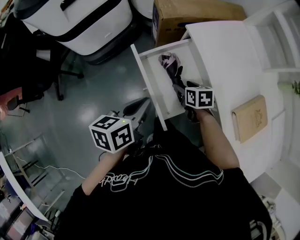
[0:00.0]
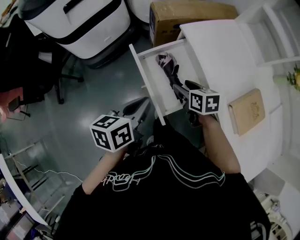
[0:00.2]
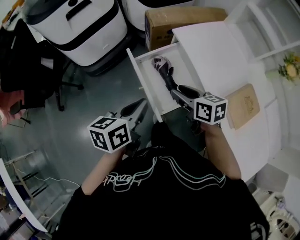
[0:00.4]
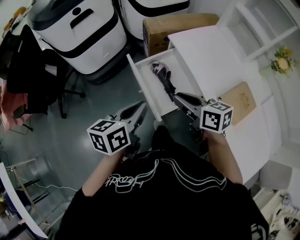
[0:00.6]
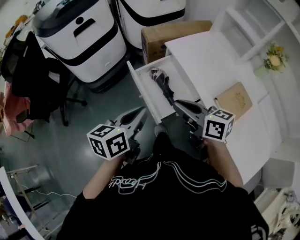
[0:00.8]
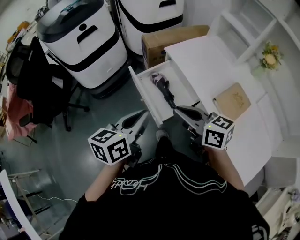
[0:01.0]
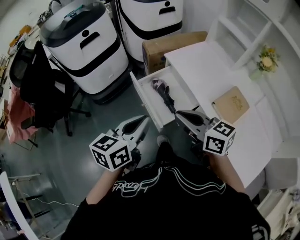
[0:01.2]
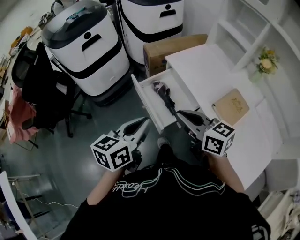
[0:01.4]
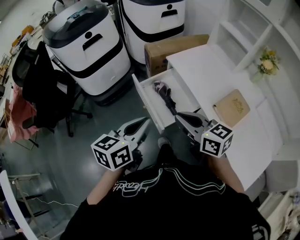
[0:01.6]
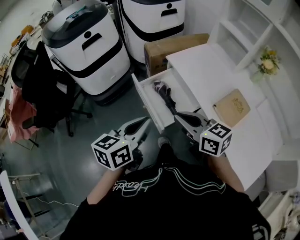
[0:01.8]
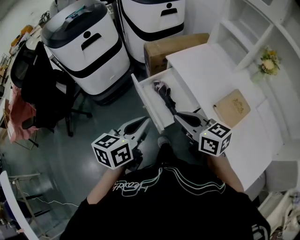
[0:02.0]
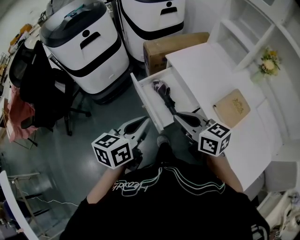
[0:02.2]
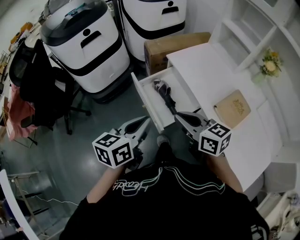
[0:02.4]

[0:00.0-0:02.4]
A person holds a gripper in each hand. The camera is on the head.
0:00.0 to 0:01.2: The left gripper shifts some 25 cm upward and backward, and changes its angle by approximately 30 degrees. The right gripper travels upward and backward by roughly 40 cm, tilts its fingers about 40 degrees upward, and closes.
0:01.2 to 0:02.4: The grippers stay close to where they were, moving slightly.

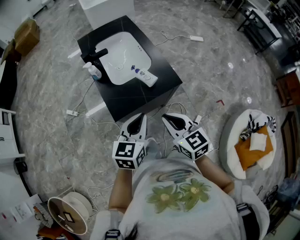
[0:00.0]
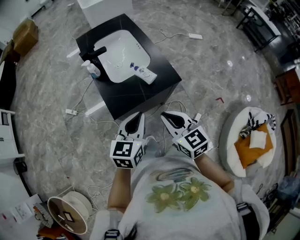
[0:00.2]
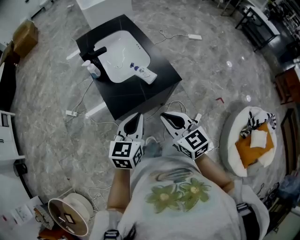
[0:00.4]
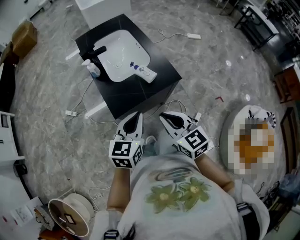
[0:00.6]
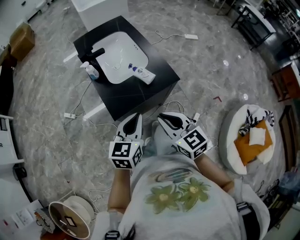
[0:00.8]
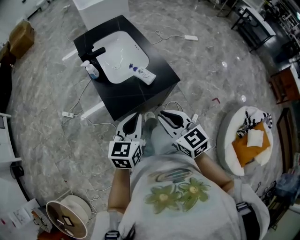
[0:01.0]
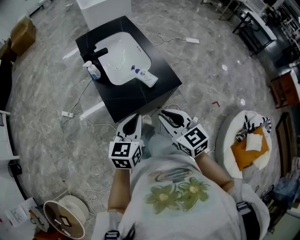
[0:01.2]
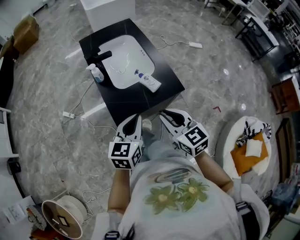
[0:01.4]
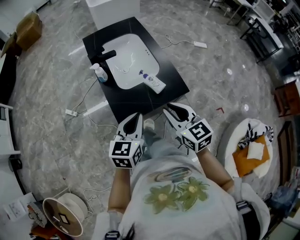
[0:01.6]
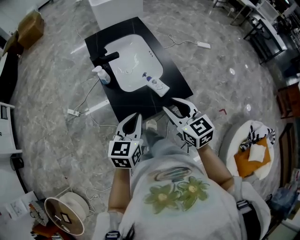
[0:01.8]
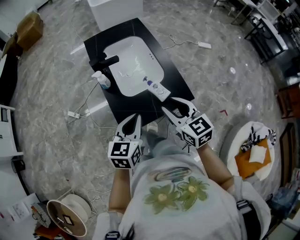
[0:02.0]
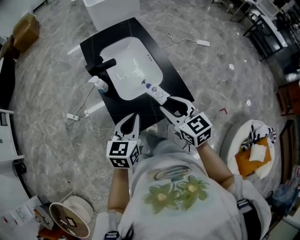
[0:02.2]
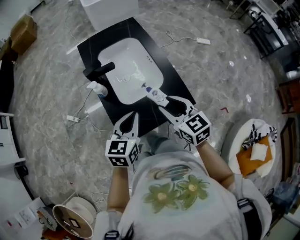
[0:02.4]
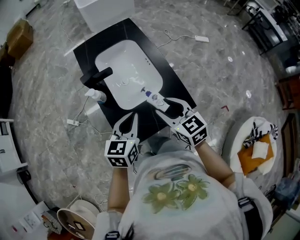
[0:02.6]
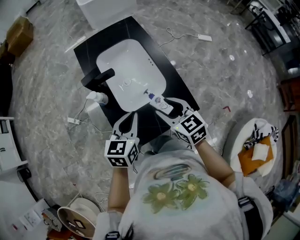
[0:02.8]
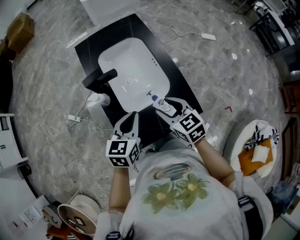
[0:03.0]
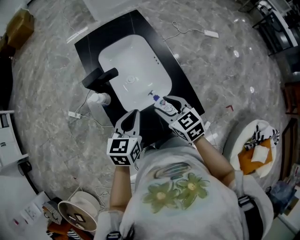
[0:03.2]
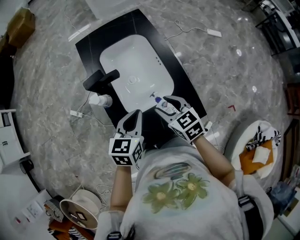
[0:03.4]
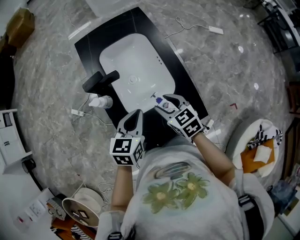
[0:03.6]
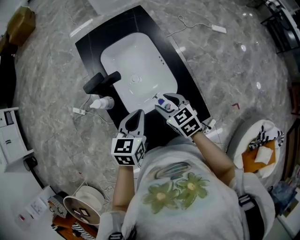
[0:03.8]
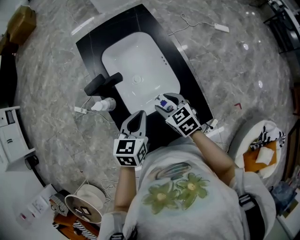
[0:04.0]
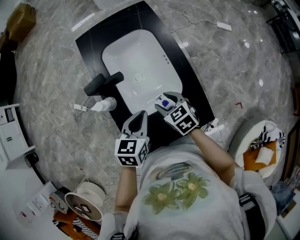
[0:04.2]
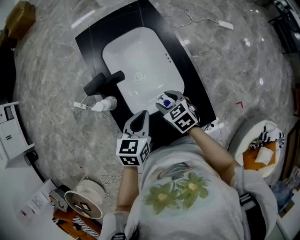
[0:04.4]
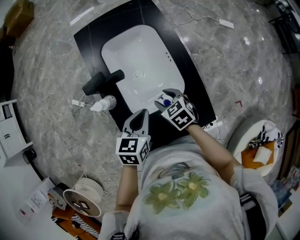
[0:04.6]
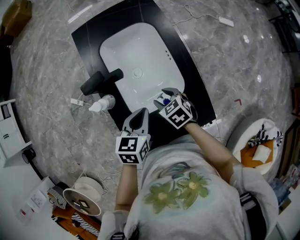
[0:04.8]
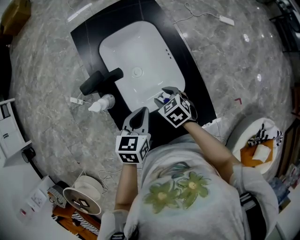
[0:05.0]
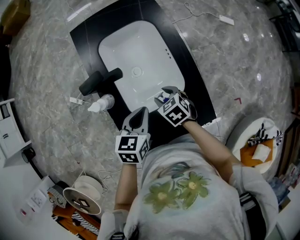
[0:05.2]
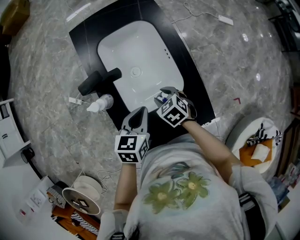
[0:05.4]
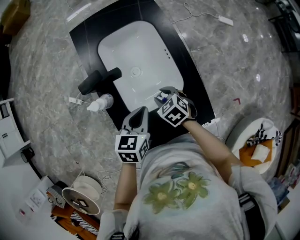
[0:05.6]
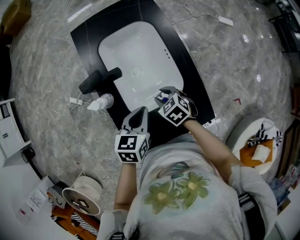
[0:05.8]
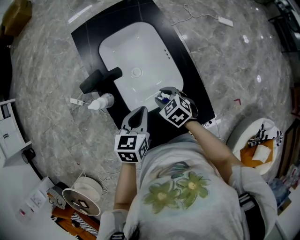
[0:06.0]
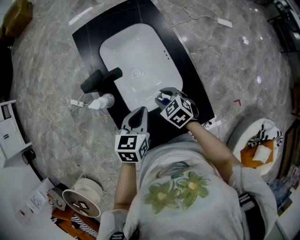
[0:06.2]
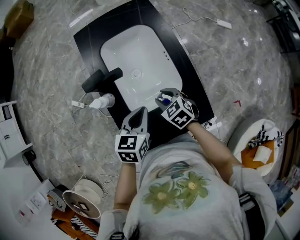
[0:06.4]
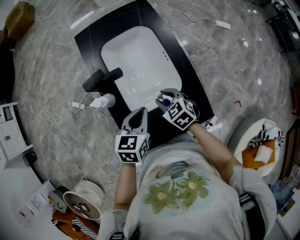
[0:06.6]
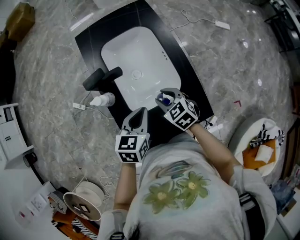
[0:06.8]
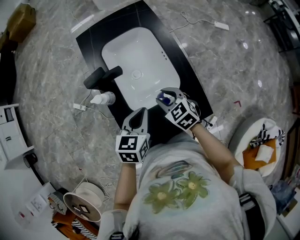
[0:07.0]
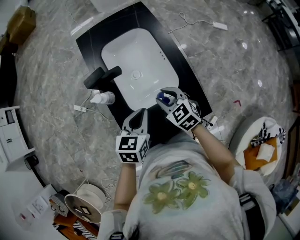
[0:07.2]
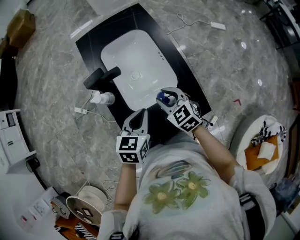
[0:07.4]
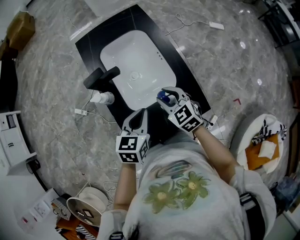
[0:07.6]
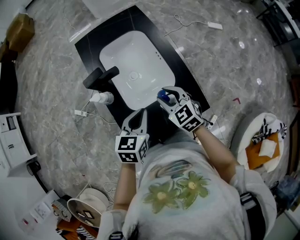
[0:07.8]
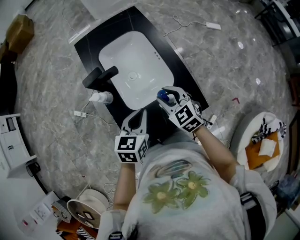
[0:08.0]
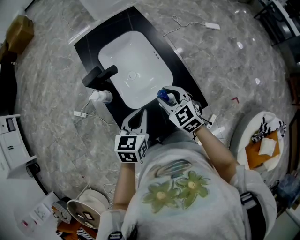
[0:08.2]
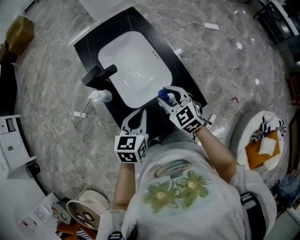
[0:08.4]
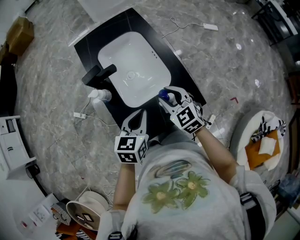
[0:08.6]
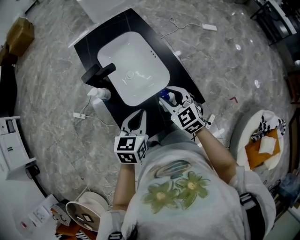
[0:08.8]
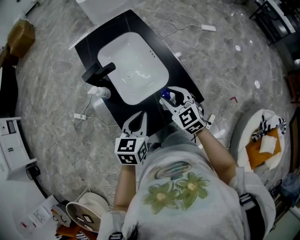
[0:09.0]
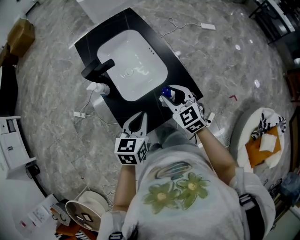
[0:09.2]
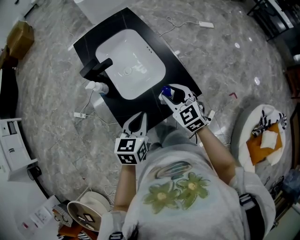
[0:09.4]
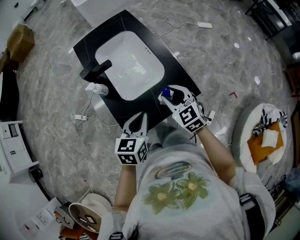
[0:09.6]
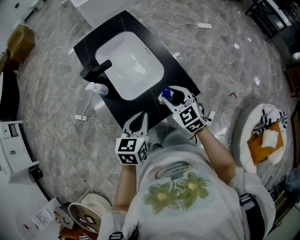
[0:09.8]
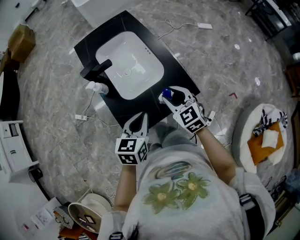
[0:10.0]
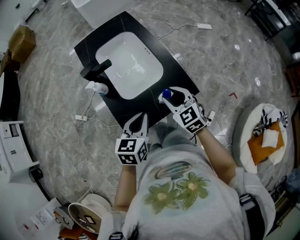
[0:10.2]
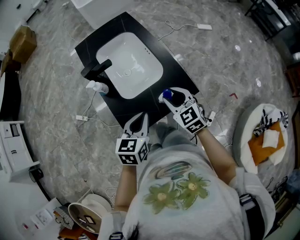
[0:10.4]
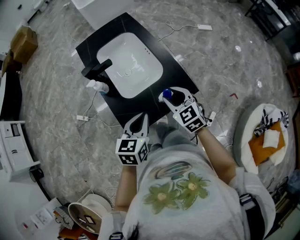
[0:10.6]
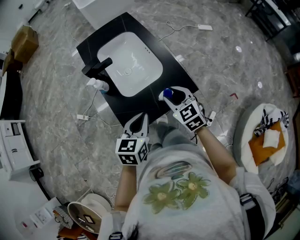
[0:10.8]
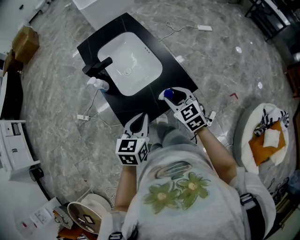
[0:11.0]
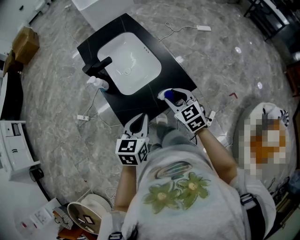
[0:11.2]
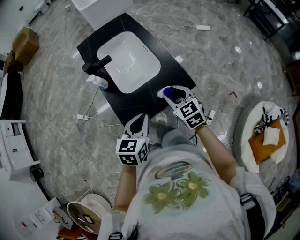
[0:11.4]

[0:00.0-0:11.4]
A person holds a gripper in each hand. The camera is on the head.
0:00.0 to 0:01.4: The right gripper moves about 5 cm; the left gripper heads to the left, covering roughly 5 cm.
0:01.4 to 0:02.8: Both grippers travel together forward, roughly 25 cm. The right gripper opens.
0:02.8 to 0:04.2: The left gripper moves forward and downward, about 15 cm. Meanwhile the right gripper travels downward and forward by approximately 20 cm.
0:04.2 to 0:05.6: The right gripper moves downward, about 5 cm.
0:05.6 to 0:07.2: The right gripper moves upward, some 10 cm, and turns by some 20 degrees. The left gripper moves backward, some 5 cm.
0:07.2 to 0:08.6: The left gripper shifts some 5 cm backward. The right gripper is displaced backward and upward by about 10 cm.
0:08.6 to 0:10.0: Both grippers move backward, roughly 10 cm.
0:10.0 to 0:11.4: The two grippers go some 5 cm backward.

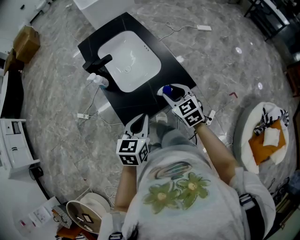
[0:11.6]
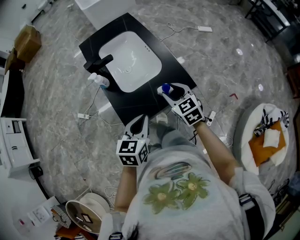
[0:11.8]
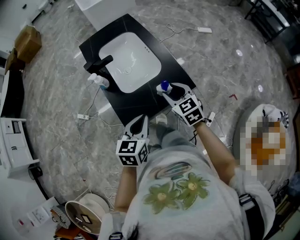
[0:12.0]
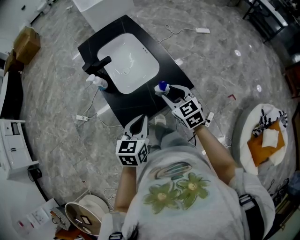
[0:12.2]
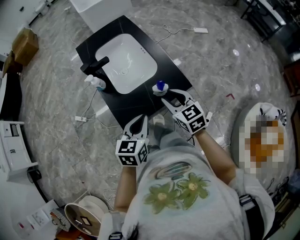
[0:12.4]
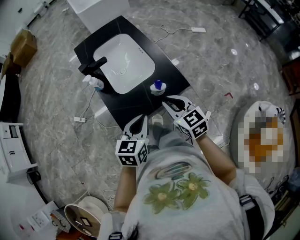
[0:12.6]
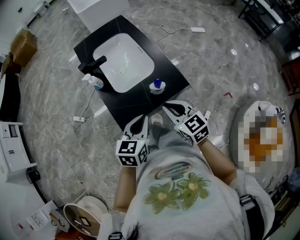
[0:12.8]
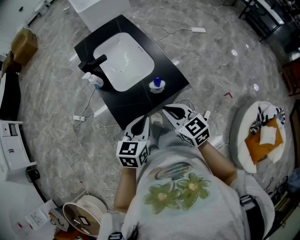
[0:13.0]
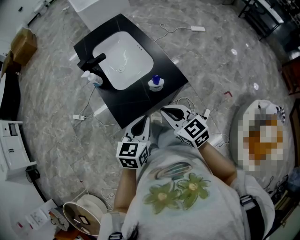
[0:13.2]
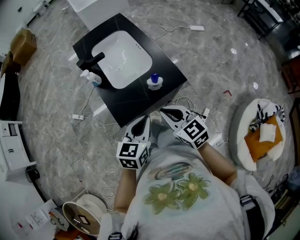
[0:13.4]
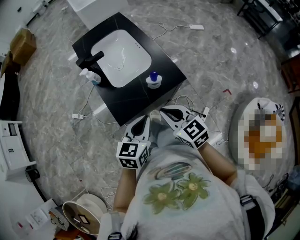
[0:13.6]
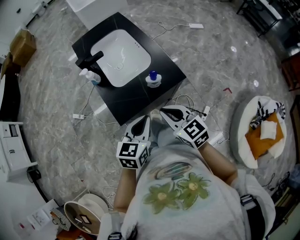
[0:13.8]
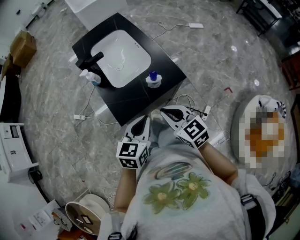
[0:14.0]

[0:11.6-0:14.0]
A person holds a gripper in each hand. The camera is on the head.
0:11.6 to 0:12.8: The right gripper goes about 10 cm backward, and closes up.
0:12.8 to 0:14.0: The right gripper is displaced backward by roughly 5 cm.

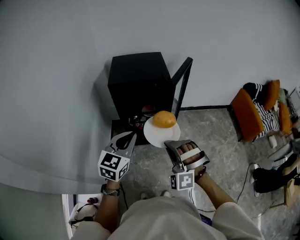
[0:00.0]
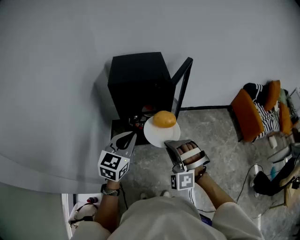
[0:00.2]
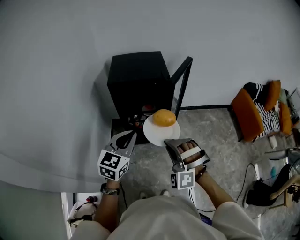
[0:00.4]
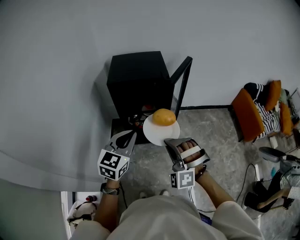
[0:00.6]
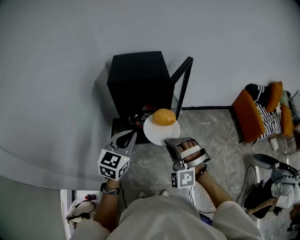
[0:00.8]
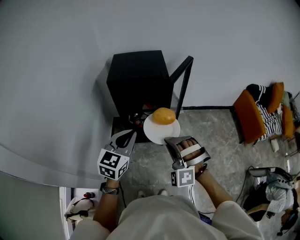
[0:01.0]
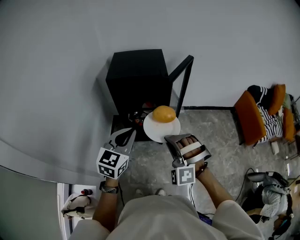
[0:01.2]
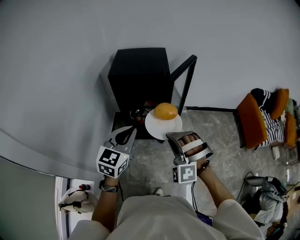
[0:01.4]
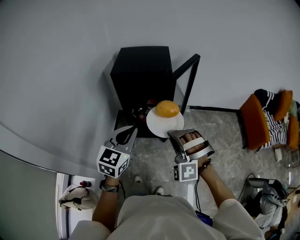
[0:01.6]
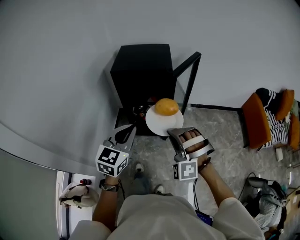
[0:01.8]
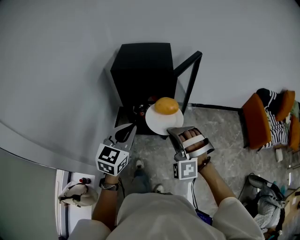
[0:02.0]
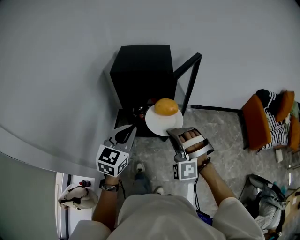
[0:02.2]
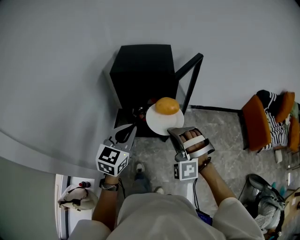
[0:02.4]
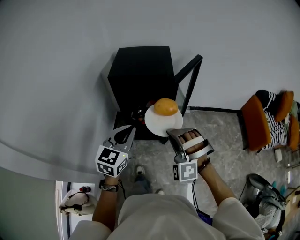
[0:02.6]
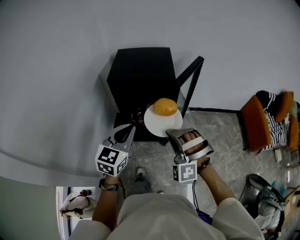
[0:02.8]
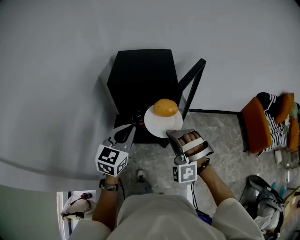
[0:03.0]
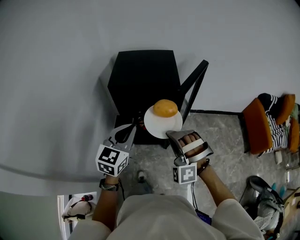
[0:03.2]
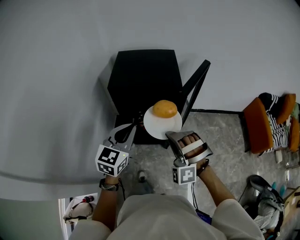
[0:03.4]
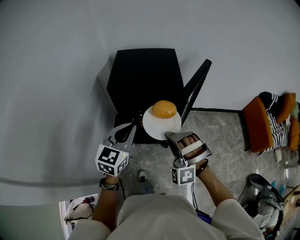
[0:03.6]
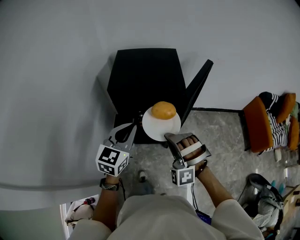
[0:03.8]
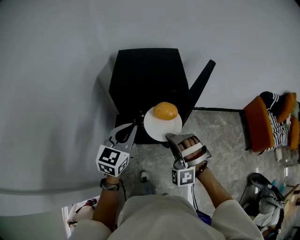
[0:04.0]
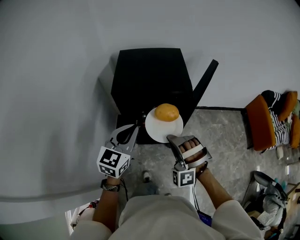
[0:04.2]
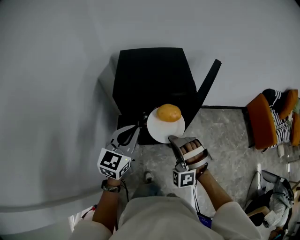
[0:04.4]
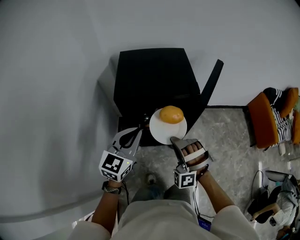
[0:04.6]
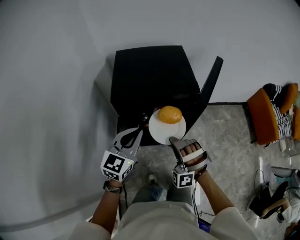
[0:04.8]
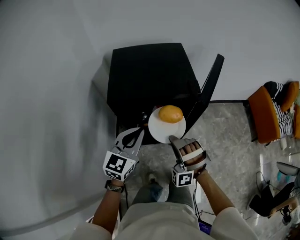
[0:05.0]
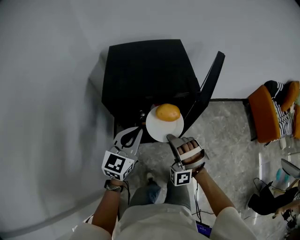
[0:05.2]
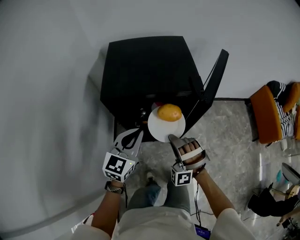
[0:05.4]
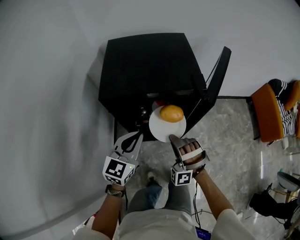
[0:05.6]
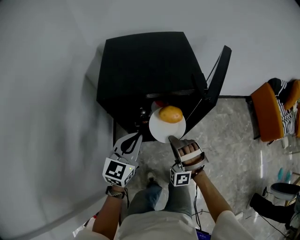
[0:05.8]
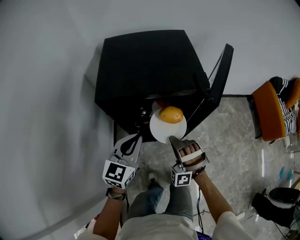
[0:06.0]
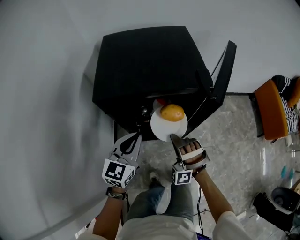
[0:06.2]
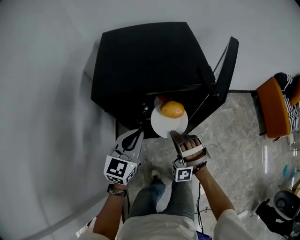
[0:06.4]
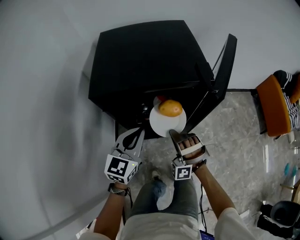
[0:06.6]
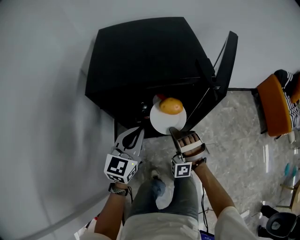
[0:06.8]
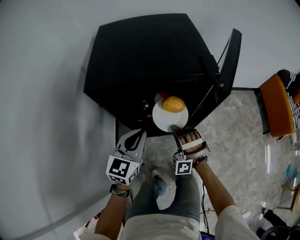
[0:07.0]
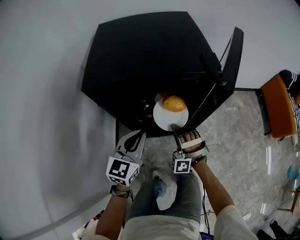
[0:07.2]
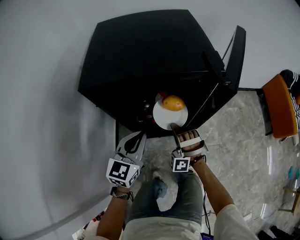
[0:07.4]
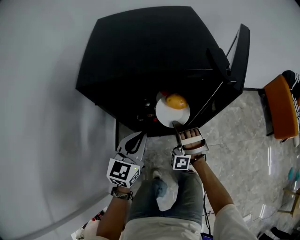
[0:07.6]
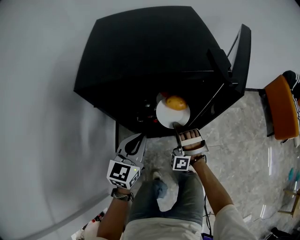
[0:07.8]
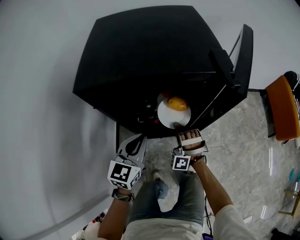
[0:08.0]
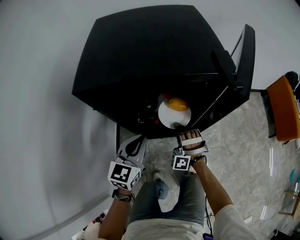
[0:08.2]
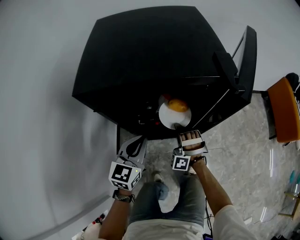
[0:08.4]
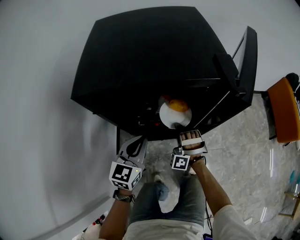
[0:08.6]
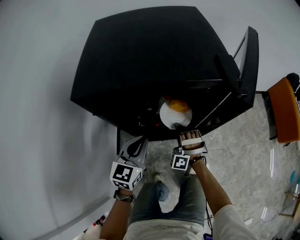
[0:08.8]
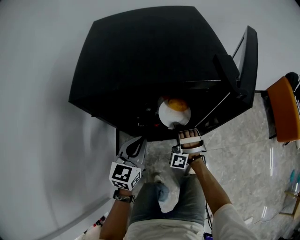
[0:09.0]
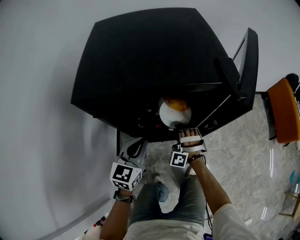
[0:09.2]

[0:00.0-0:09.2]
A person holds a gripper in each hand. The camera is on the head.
0:00.0 to 0:01.6: The left gripper changes place by about 5 cm.
0:01.6 to 0:03.0: The left gripper moves about 10 cm.
0:03.0 to 0:04.6: The left gripper changes place by roughly 15 cm.
0:04.6 to 0:06.2: The left gripper is displaced downward by roughly 15 cm.
0:06.2 to 0:07.6: The left gripper heads downward, covering roughly 10 cm.
0:07.6 to 0:09.2: The left gripper changes place by roughly 5 cm.
